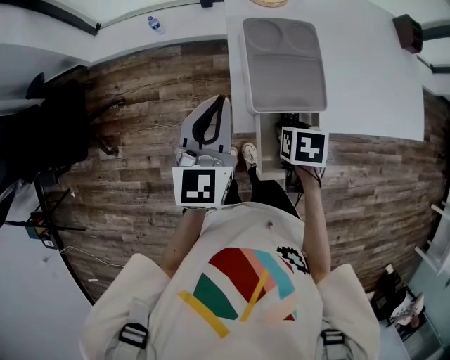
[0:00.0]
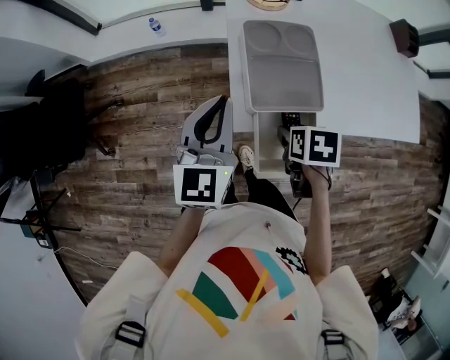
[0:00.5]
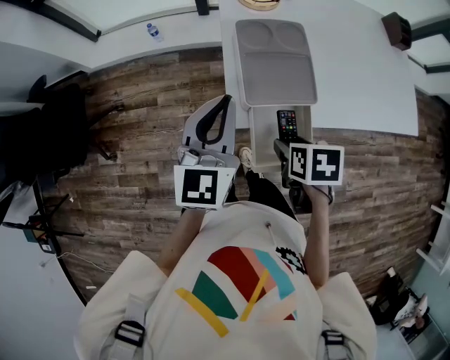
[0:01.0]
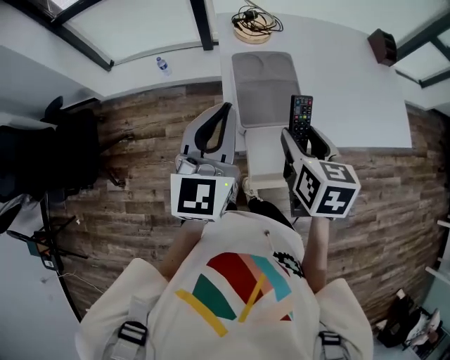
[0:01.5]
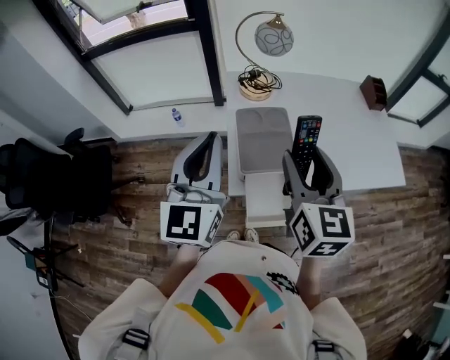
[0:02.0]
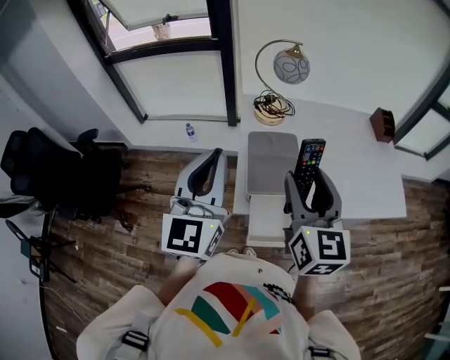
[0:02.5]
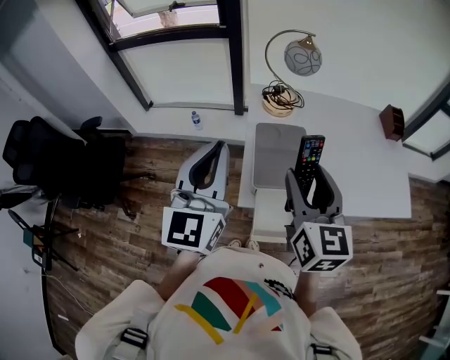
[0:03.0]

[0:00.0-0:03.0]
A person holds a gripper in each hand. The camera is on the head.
0:00.0 to 0:01.5: The right gripper heads upward, covering roughly 20 cm, and tips its fingers upward by roughly 30 degrees. Meanwhile the left gripper shifts about 10 cm upward.
0:01.5 to 0:03.0: The two grippers go roughly 10 cm upward. The right gripper swivels about 30 degrees.

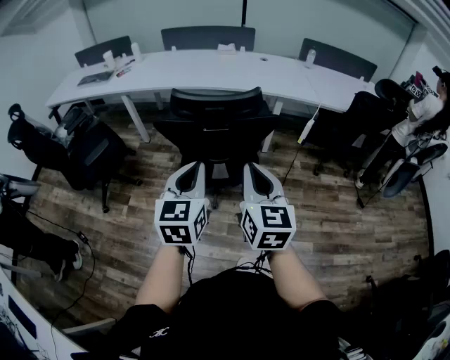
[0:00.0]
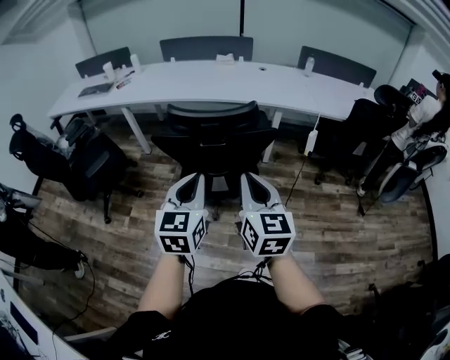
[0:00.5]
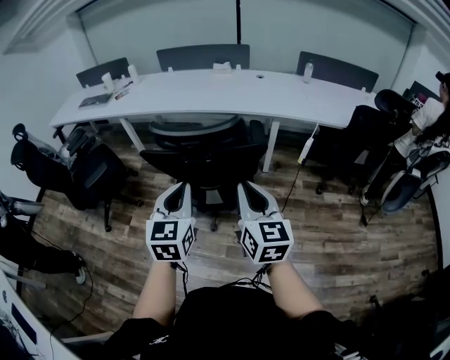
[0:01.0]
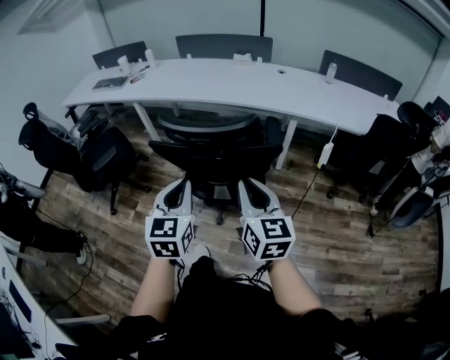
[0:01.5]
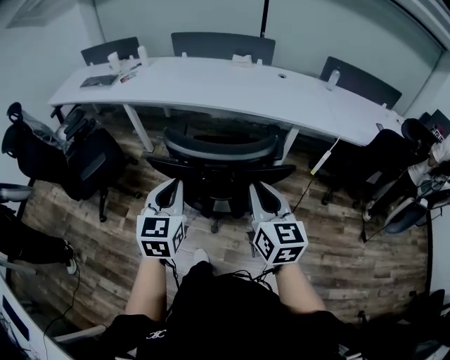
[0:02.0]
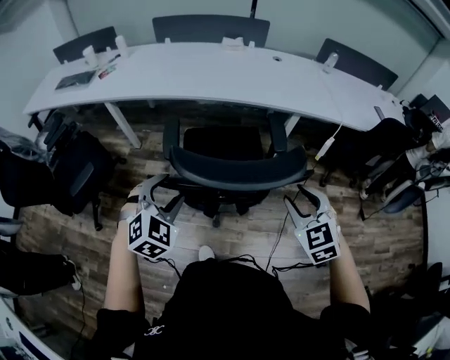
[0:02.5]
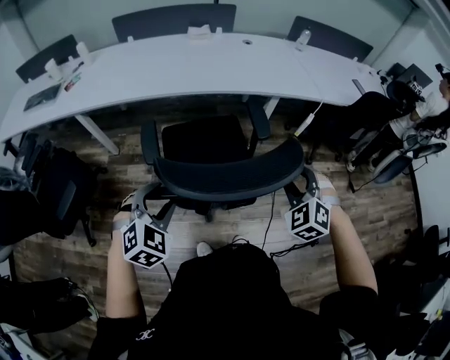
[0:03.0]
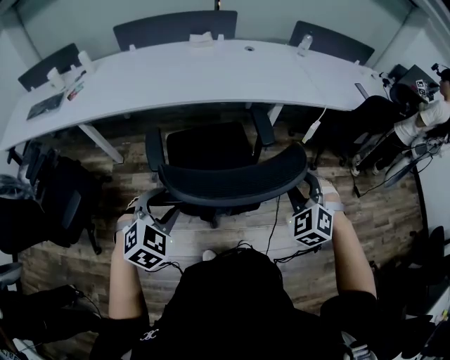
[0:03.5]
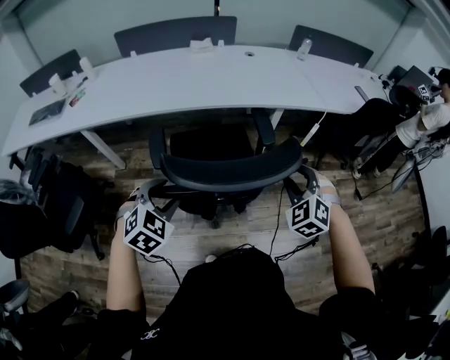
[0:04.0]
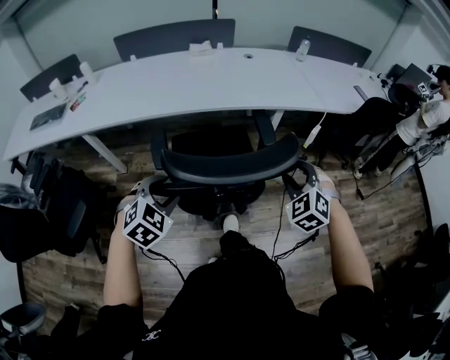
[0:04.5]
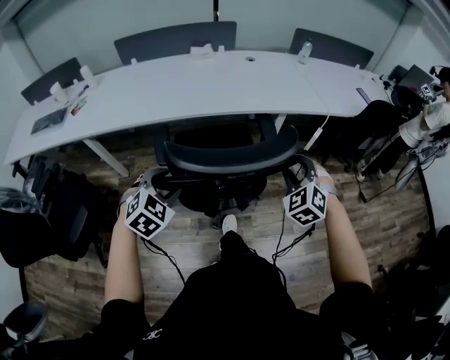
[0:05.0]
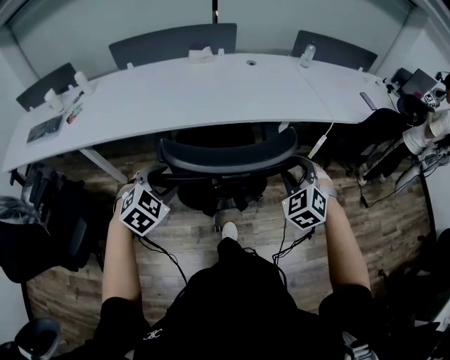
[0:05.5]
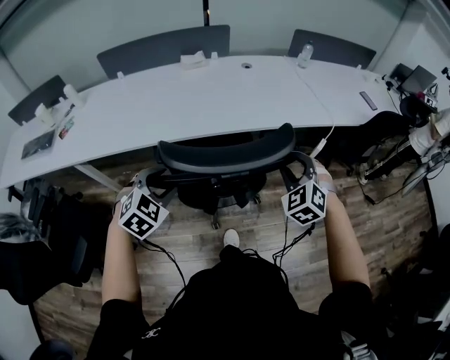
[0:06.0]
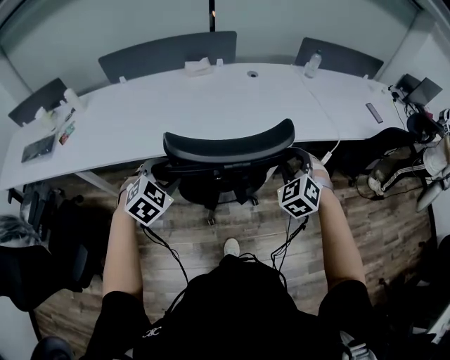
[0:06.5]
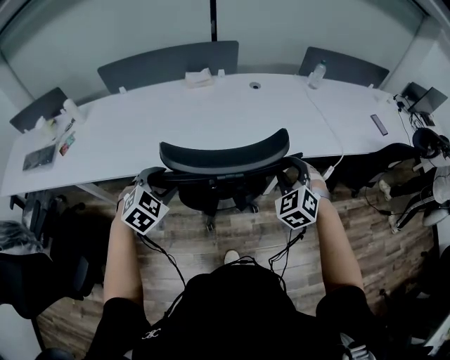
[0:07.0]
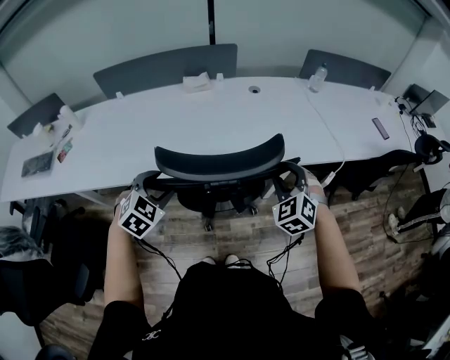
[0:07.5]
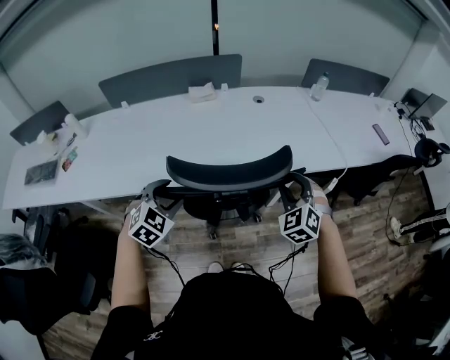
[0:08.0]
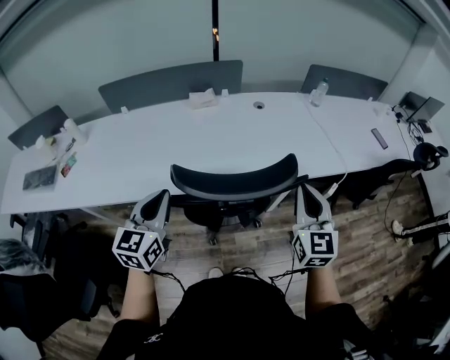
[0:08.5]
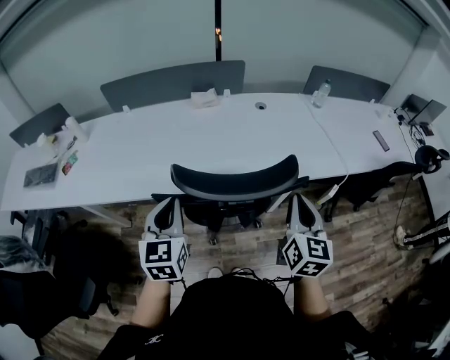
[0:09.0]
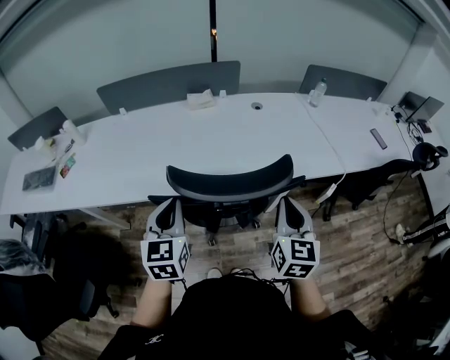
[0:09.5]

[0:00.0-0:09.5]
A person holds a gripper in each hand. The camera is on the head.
0:00.0 to 0:02.0: The grippers both shift forward by roughly 20 cm.
0:02.0 to 0:04.0: The left gripper moves about 20 cm, changes its angle by approximately 60 degrees, and opens its fingers, while the right gripper shifts by approximately 20 cm, twists some 60 degrees counterclockwise, seen from behind, and opens.
0:04.0 to 0:05.5: The grippers both shift forward by some 15 cm.
0:05.5 to 0:07.5: The two grippers go roughly 25 cm forward.
0:07.5 to 0:09.5: The left gripper goes some 10 cm upward, rotates some 50 degrees, and closes, while the right gripper moves upward and backward, some 10 cm, rolls clockwise, seen from behind, by approximately 50 degrees, and closes up.

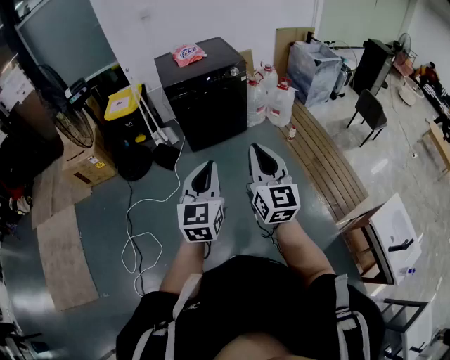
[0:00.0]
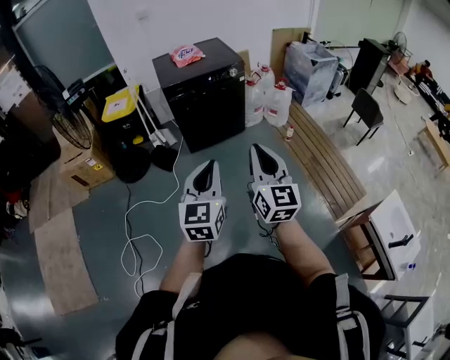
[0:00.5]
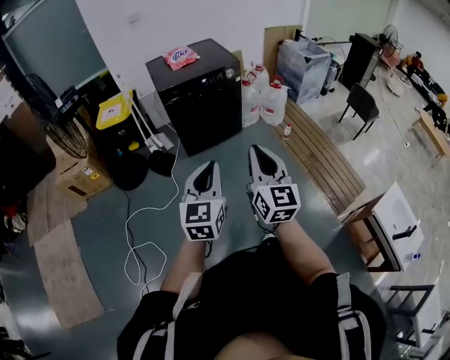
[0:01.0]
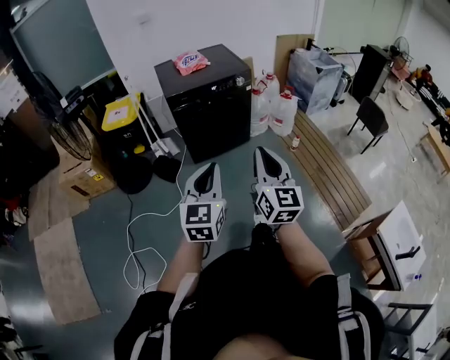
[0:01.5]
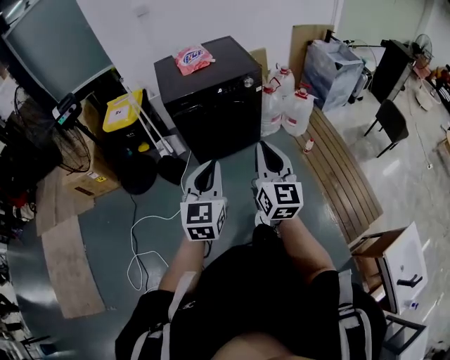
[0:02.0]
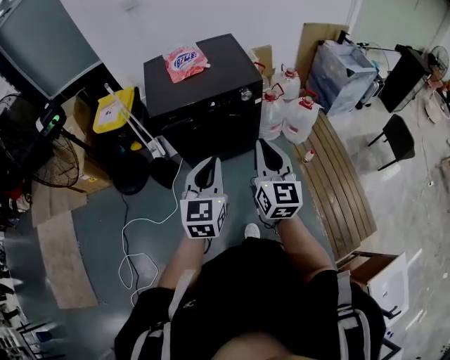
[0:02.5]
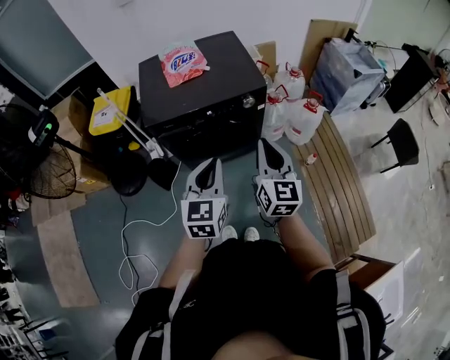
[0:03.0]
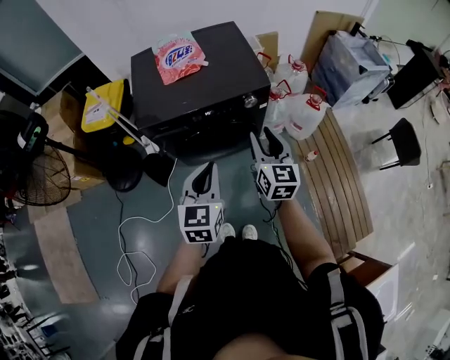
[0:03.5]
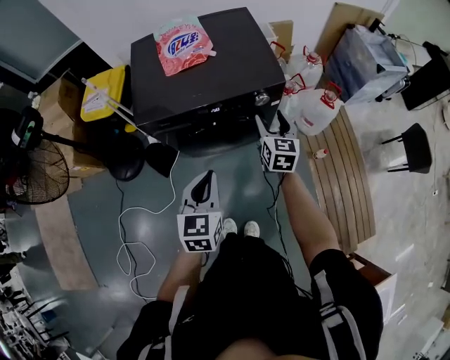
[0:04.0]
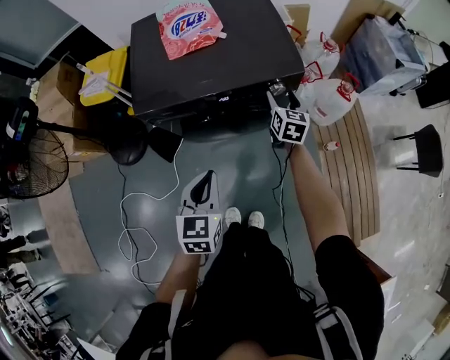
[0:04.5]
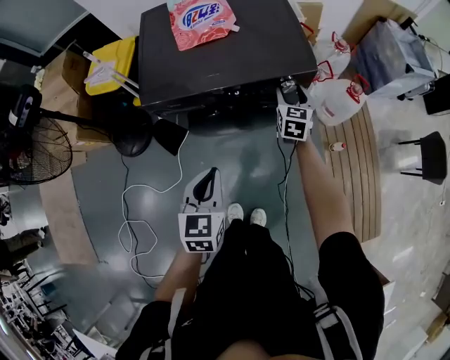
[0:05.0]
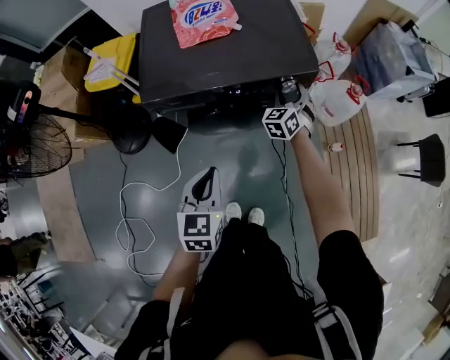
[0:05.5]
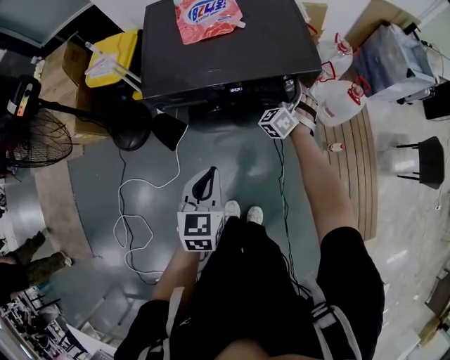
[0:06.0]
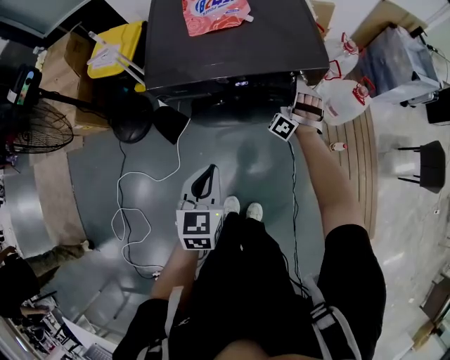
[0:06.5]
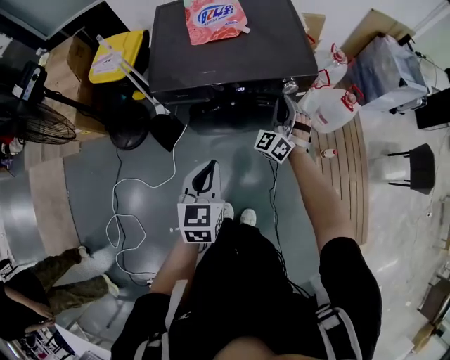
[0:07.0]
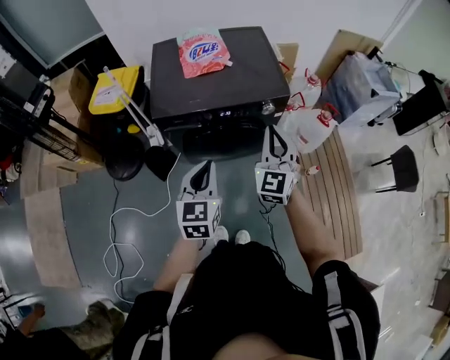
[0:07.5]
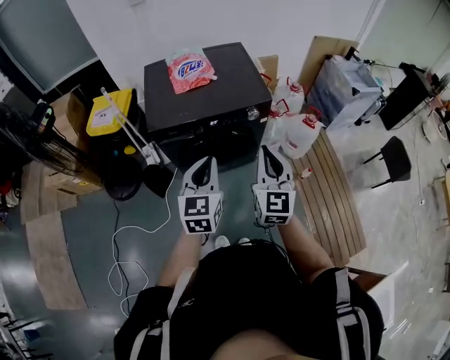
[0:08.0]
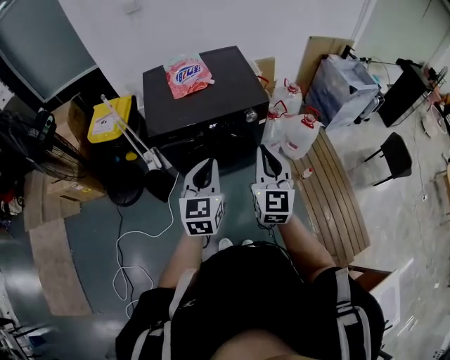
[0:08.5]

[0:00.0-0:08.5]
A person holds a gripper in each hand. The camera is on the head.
0:00.0 to 0:02.0: The grippers both shift forward by roughly 25 cm.
0:02.0 to 0:04.0: The right gripper goes approximately 50 cm forward and downward, rotates approximately 20 degrees, and opens its fingers, while the left gripper is displaced forward by some 35 cm, and swivels about 20 degrees.
0:04.0 to 0:06.5: The left gripper is displaced downward and to the left by some 10 cm. The right gripper goes about 15 cm downward and forward, and twists approximately 90 degrees counterclockwise, seen from behind.
0:06.5 to 0:08.5: The left gripper moves upward, about 20 cm, and rotates some 20 degrees; the right gripper heads upward and backward, covering about 40 cm, twists some 80 degrees clockwise, seen from behind, and closes.

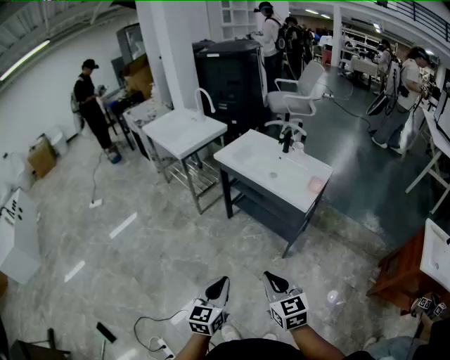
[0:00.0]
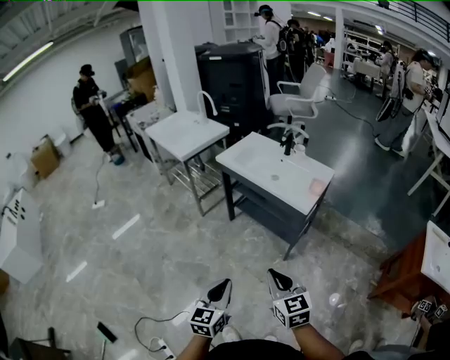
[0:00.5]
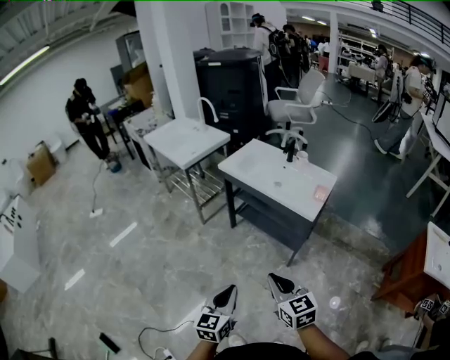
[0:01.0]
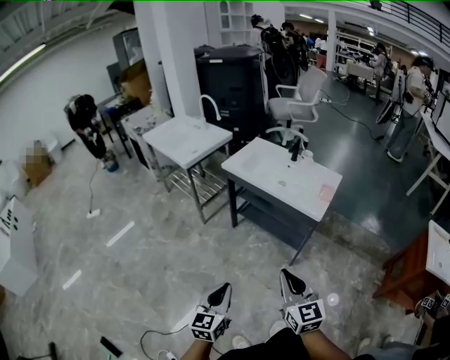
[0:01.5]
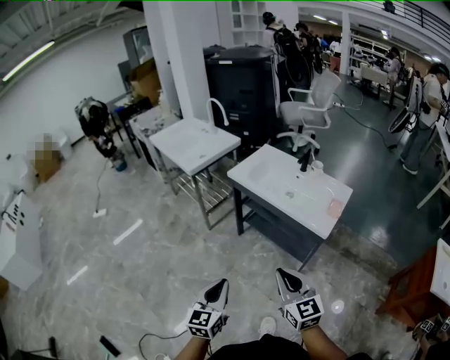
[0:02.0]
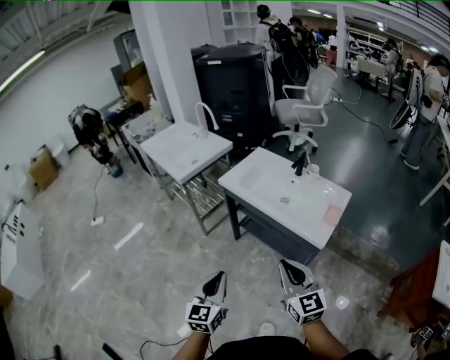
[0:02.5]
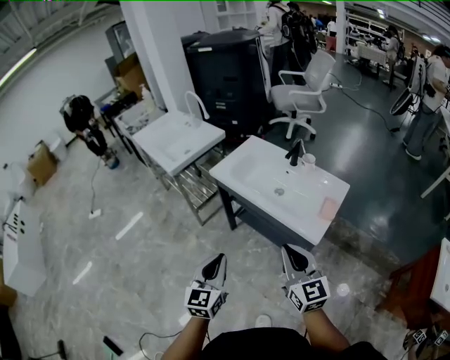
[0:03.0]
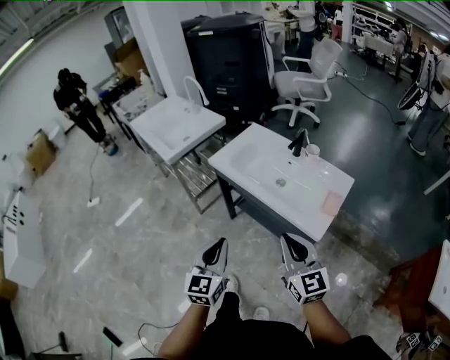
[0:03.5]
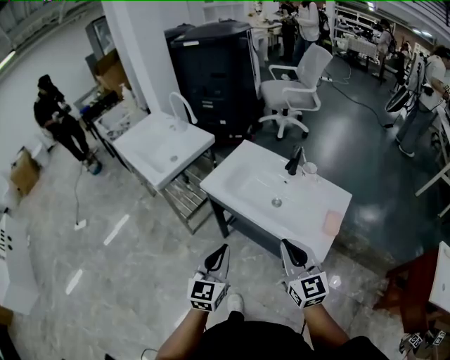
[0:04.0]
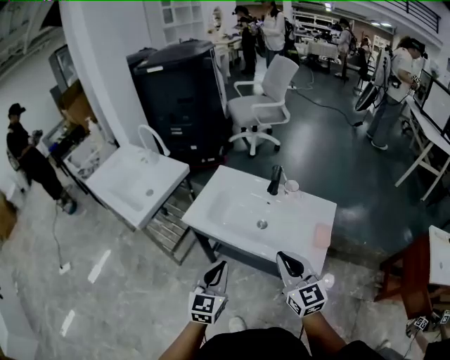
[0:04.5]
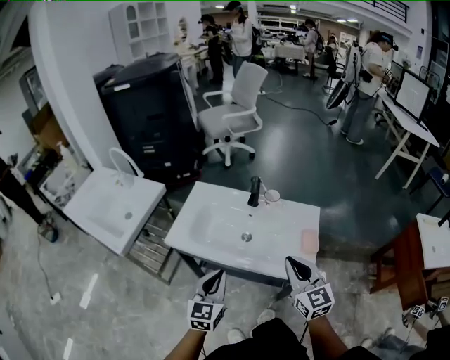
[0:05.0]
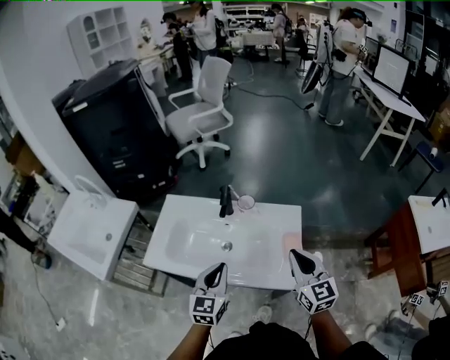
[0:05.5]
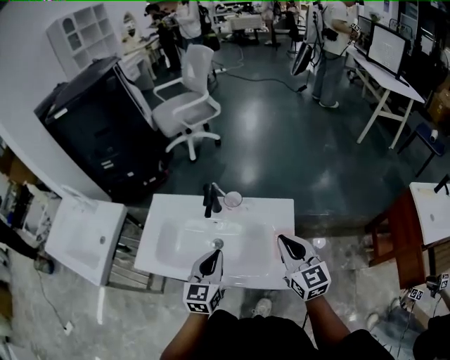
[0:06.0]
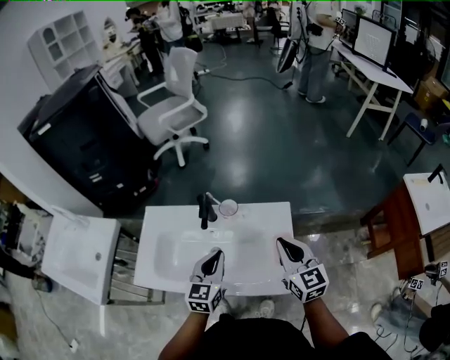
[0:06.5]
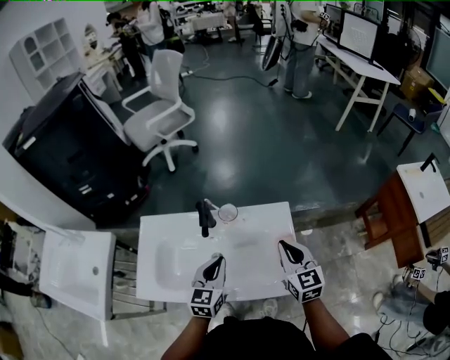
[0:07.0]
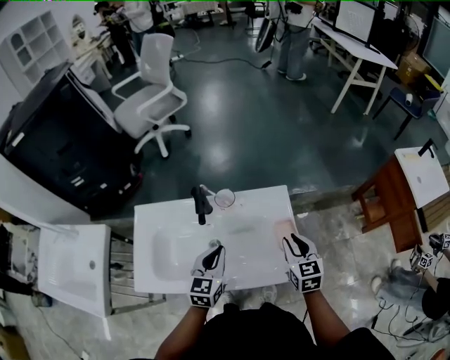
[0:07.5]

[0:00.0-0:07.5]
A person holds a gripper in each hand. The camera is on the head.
0:00.0 to 0:02.0: The right gripper goes approximately 15 cm forward, while the left gripper shifts some 15 cm forward and to the left.
0:02.0 to 0:04.0: Both grippers move forward, about 25 cm.
0:04.0 to 0:05.5: The left gripper shifts by roughly 25 cm, and swivels about 30 degrees, while the right gripper ends up roughly 20 cm from where it was, and swivels some 30 degrees.
0:05.5 to 0:07.5: The right gripper heads downward and forward, covering some 15 cm, and turns by some 30 degrees. The left gripper is displaced forward and downward by about 10 cm.
